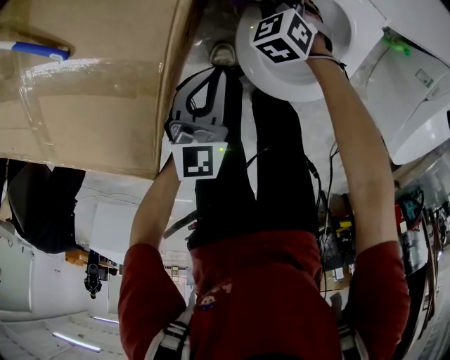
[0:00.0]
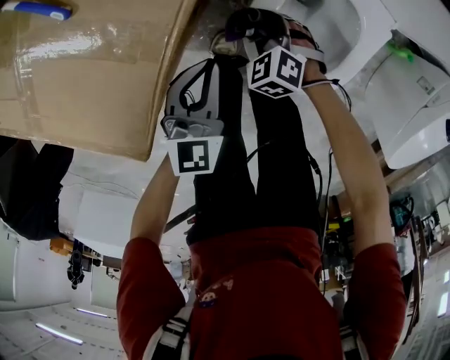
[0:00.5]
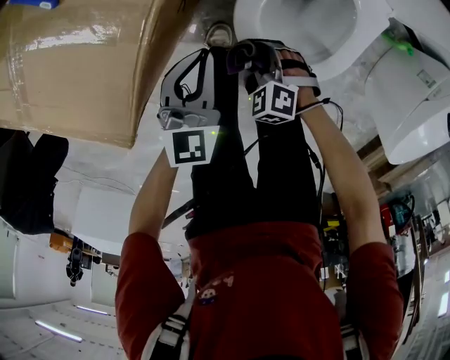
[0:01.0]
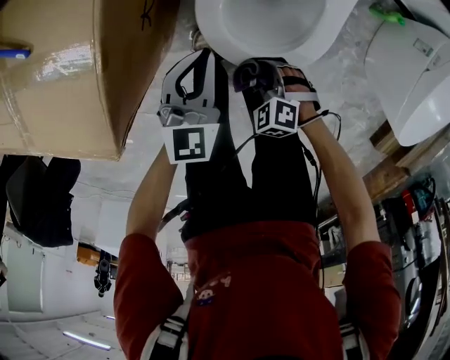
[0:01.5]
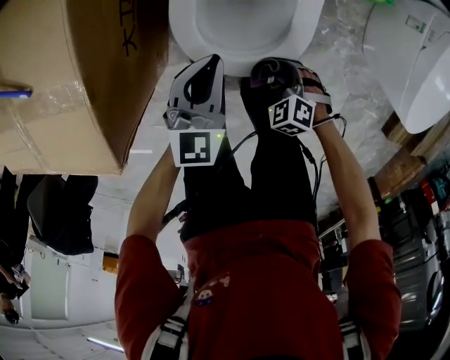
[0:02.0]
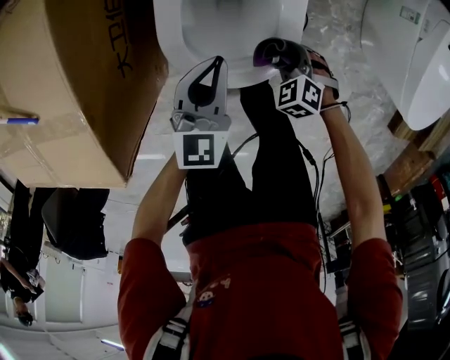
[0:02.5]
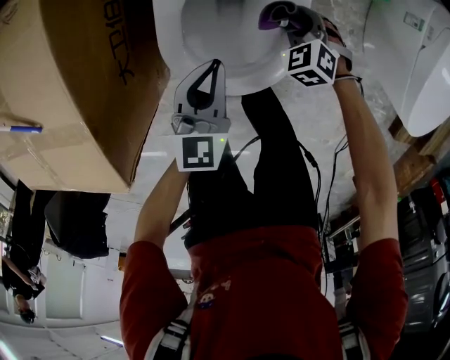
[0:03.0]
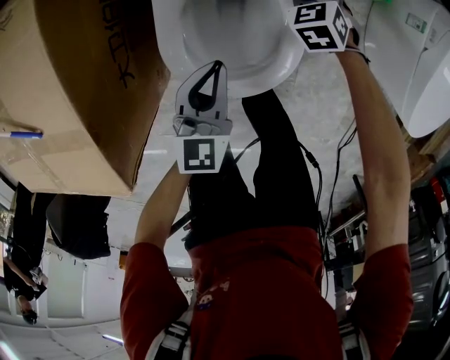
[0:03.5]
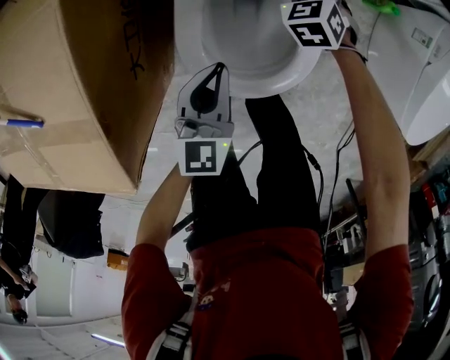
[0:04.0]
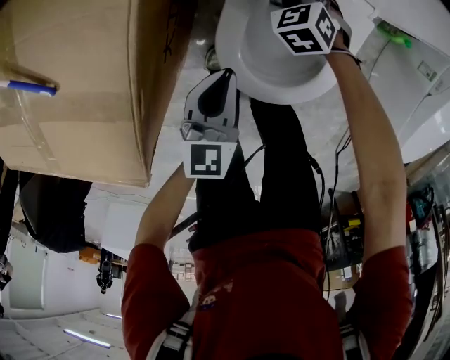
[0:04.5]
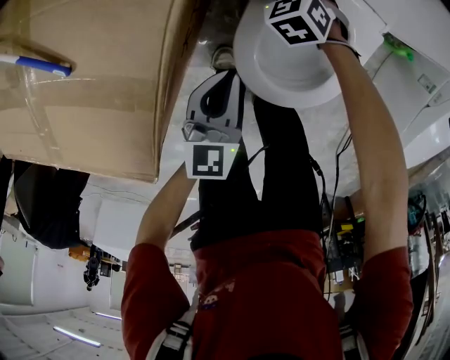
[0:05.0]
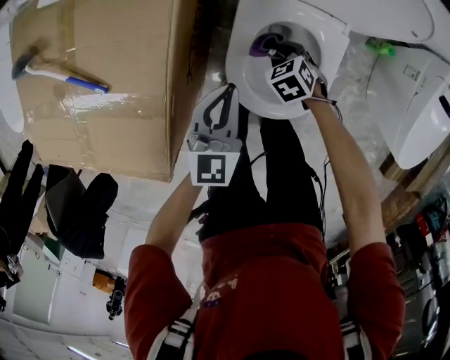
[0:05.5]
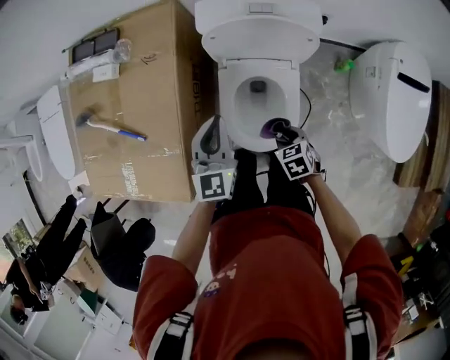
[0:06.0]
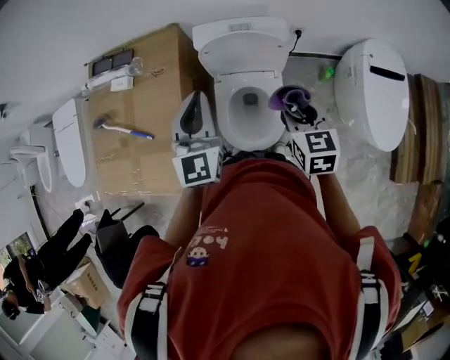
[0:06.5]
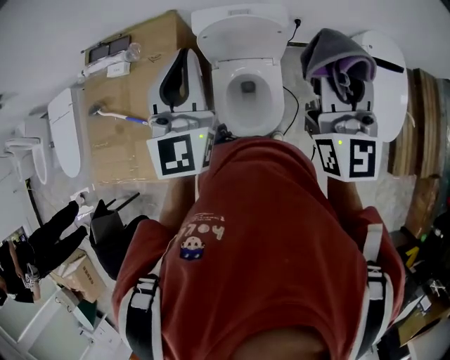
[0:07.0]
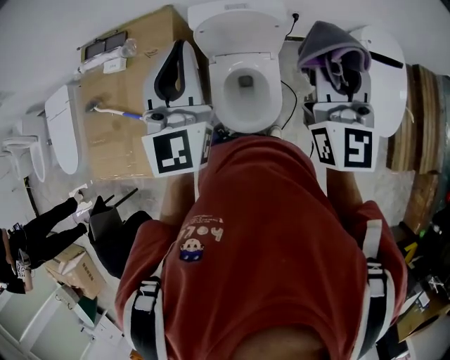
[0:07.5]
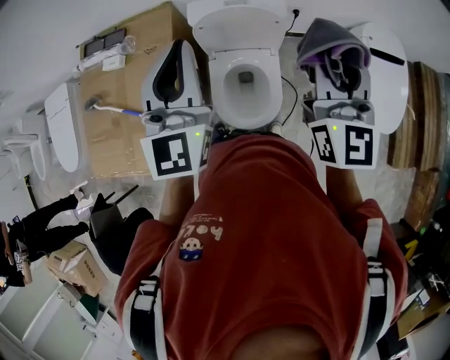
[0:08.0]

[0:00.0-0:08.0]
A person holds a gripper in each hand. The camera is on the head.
0:00.0 to 0:02.0: The left gripper moves to the right, some 15 cm. Meanwhile the right gripper travels backward and to the right by some 35 cm.
0:02.0 to 0:04.0: The left gripper shifts roughly 5 cm forward, and turns by roughly 20 degrees. Meanwhile the right gripper goes approximately 35 cm forward, and changes its angle by roughly 30 degrees.
0:04.0 to 0:06.0: The right gripper moves backward and upward, some 30 cm, and rotates some 30 degrees. The left gripper moves upward, some 25 cm.
0:06.0 to 0:08.0: The right gripper is displaced upward by approximately 50 cm, and tips its fingers upward by approximately 70 degrees. Meanwhile the left gripper goes some 30 cm upward, and swivels about 20 degrees.

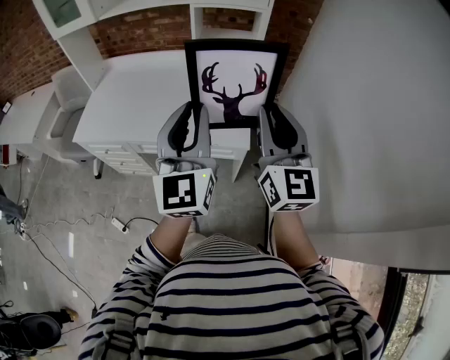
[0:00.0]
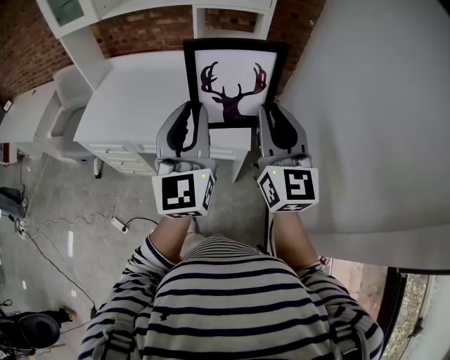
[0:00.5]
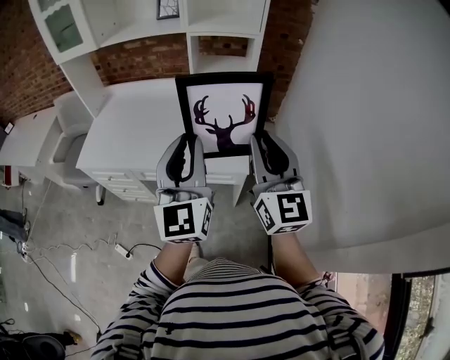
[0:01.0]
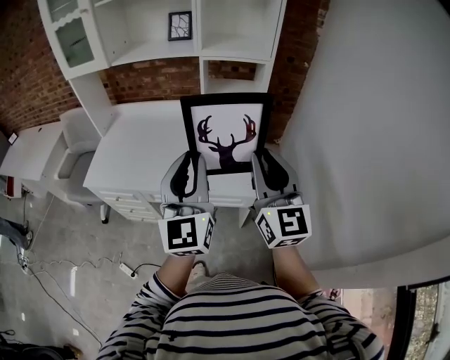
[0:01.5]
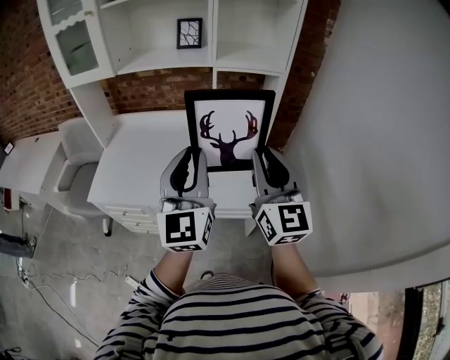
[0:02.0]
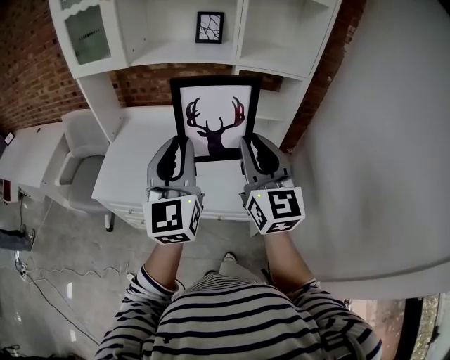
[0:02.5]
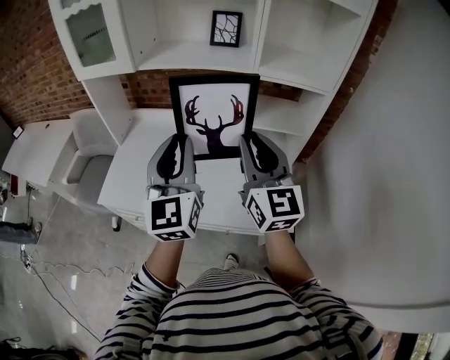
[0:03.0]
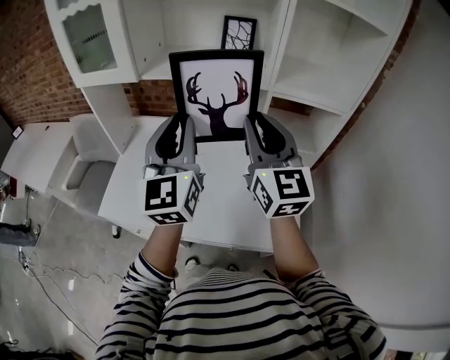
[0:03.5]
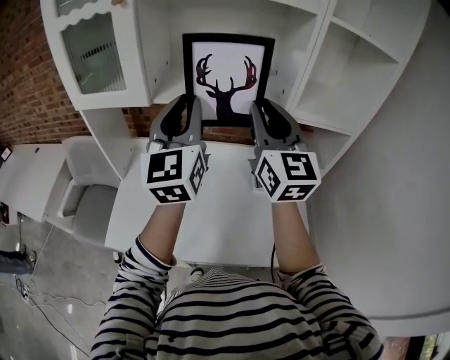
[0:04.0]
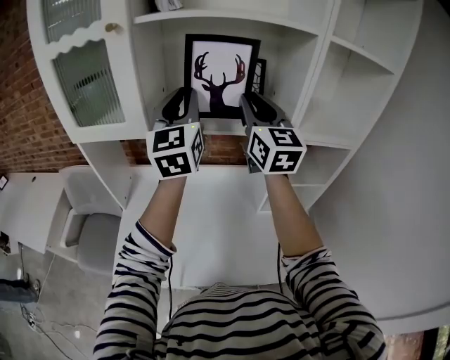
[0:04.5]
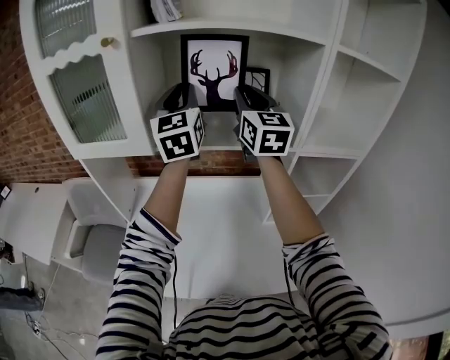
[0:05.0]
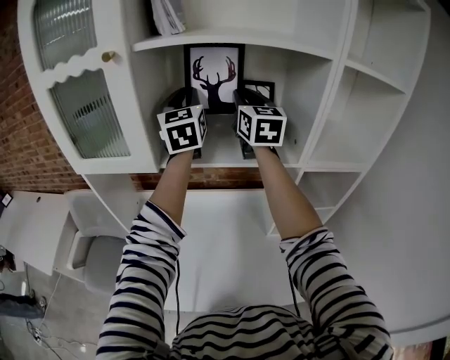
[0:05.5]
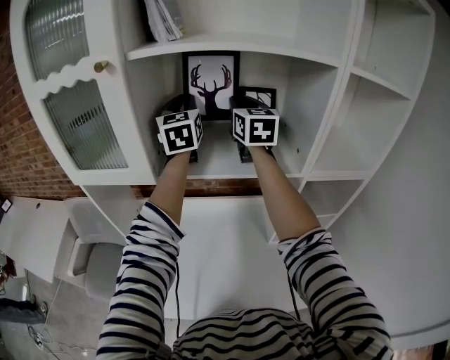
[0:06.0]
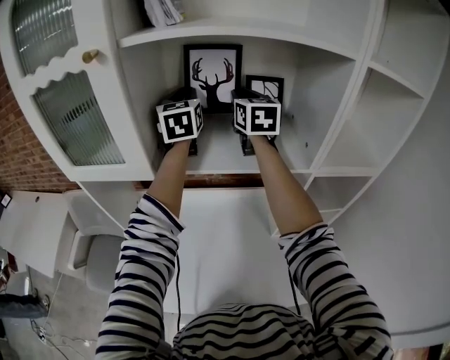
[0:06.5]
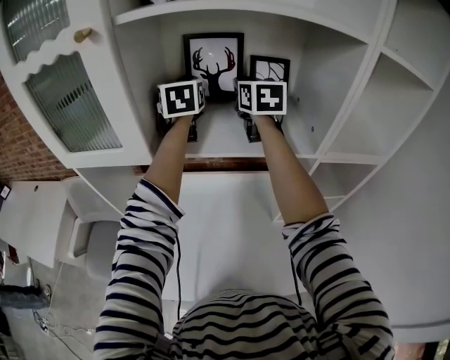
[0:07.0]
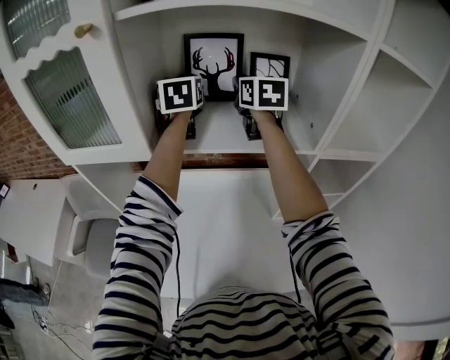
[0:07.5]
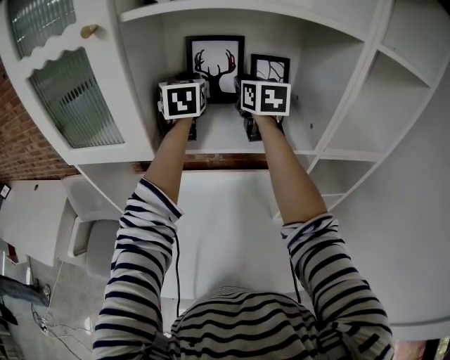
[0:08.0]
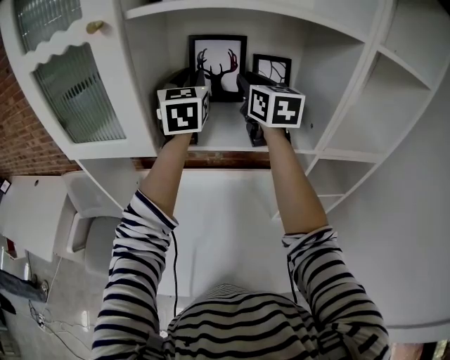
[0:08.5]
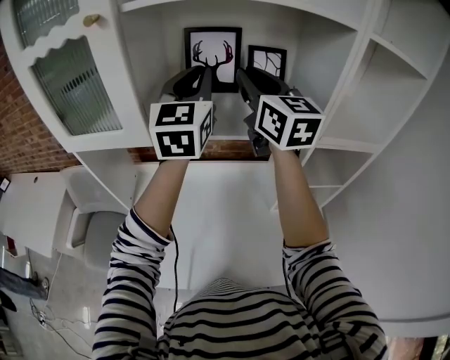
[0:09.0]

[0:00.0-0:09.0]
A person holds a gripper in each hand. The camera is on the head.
0:00.0 to 0:02.0: Both grippers move to the left and forward, about 15 cm.
0:02.0 to 0:04.5: The two grippers travel together, forward, approximately 50 cm.
0:04.5 to 0:07.0: Both grippers travel together forward, some 25 cm. The left gripper changes its angle by roughly 30 degrees, while the right gripper rotates about 20 degrees.
0:07.0 to 0:09.0: The left gripper shifts roughly 15 cm backward, and swivels approximately 20 degrees; the right gripper travels backward and upward by some 15 cm, and rotates approximately 20 degrees.

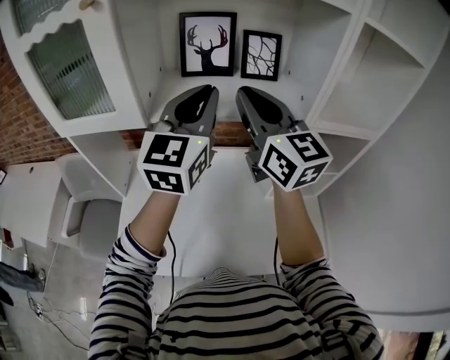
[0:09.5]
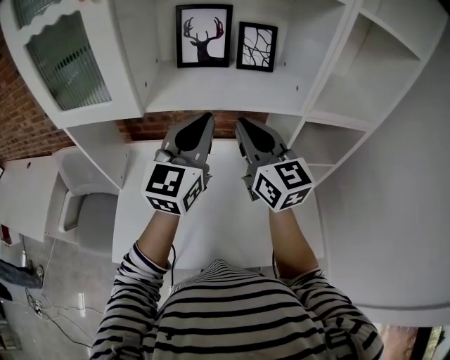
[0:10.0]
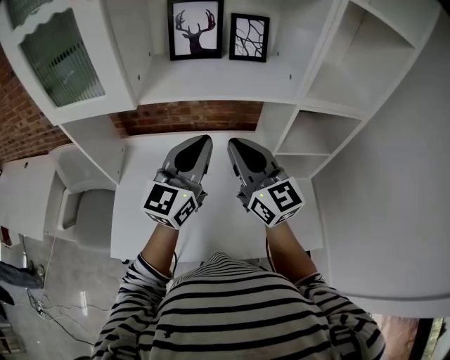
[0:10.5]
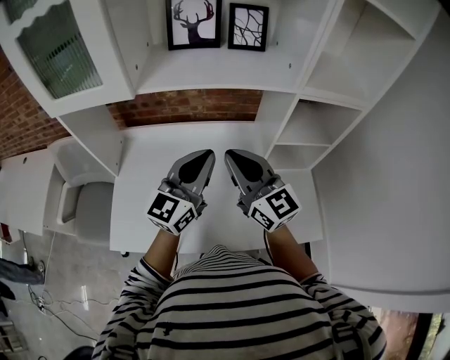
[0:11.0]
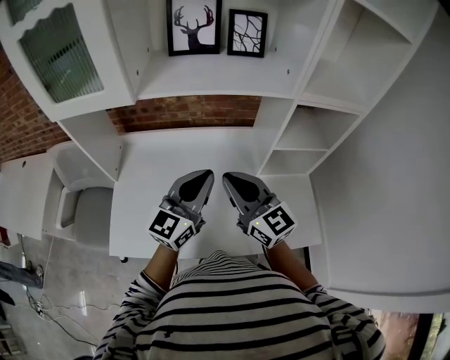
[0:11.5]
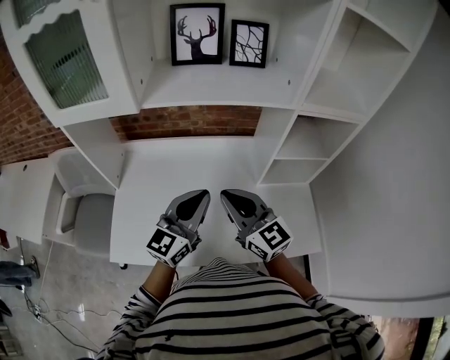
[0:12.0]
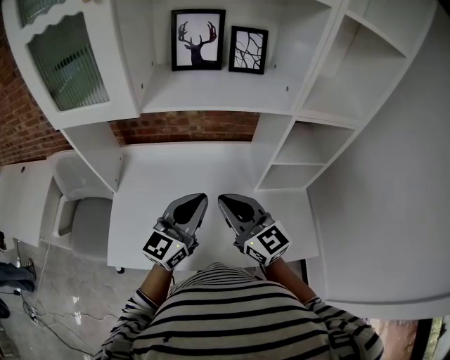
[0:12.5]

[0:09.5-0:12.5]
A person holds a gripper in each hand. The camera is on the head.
0:09.5 to 0:11.0: Both grippers travel together downward and backward, some 20 cm.
0:11.0 to 0:12.5: The right gripper shifts by some 5 cm; the left gripper moves approximately 5 cm.

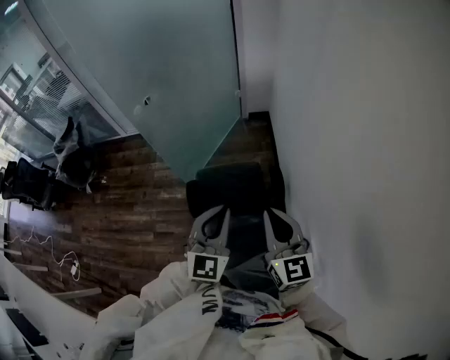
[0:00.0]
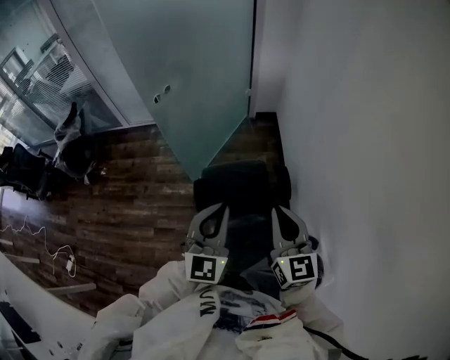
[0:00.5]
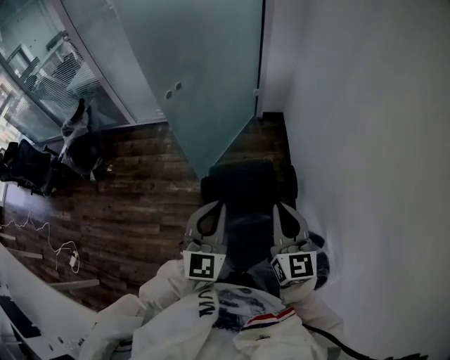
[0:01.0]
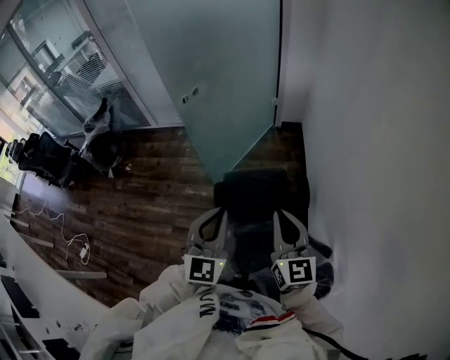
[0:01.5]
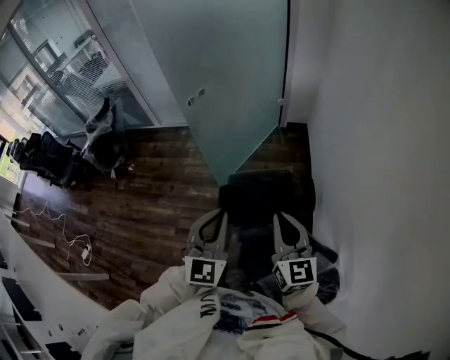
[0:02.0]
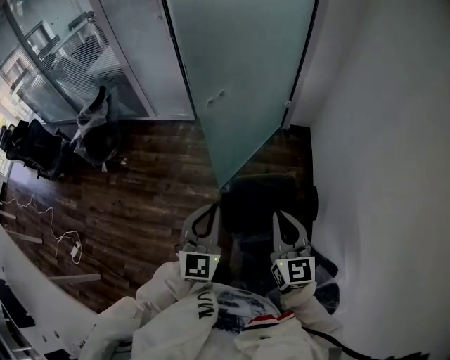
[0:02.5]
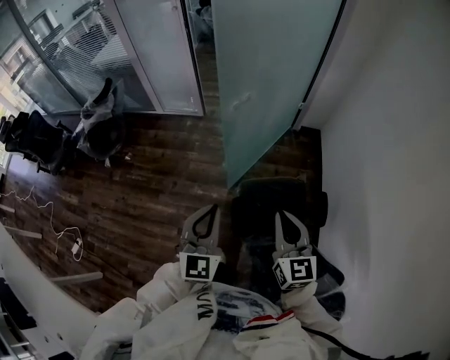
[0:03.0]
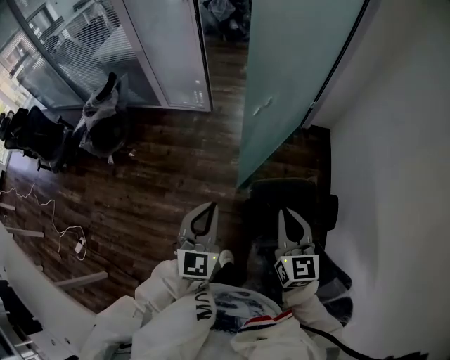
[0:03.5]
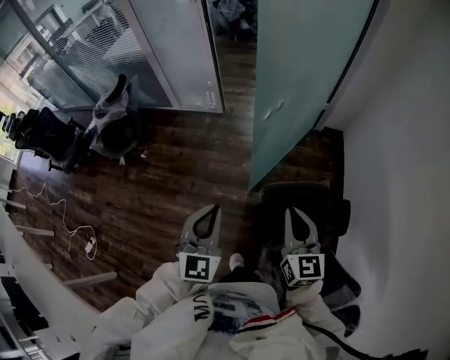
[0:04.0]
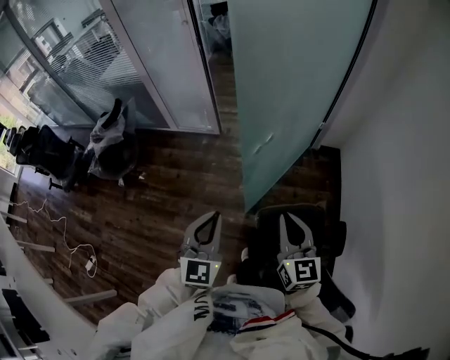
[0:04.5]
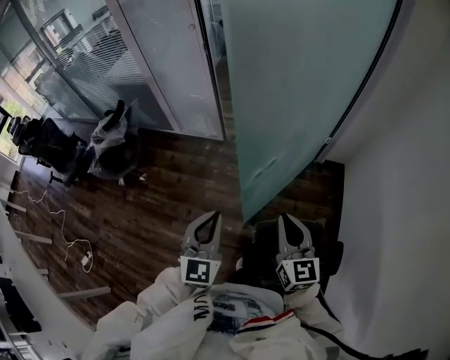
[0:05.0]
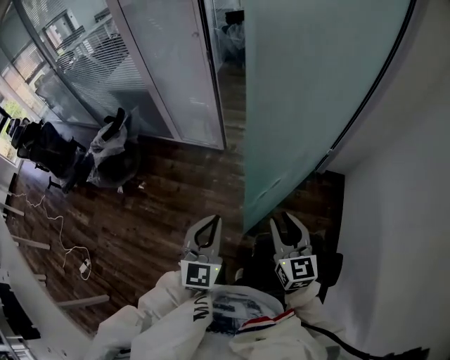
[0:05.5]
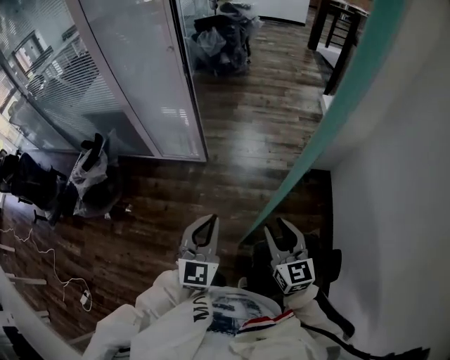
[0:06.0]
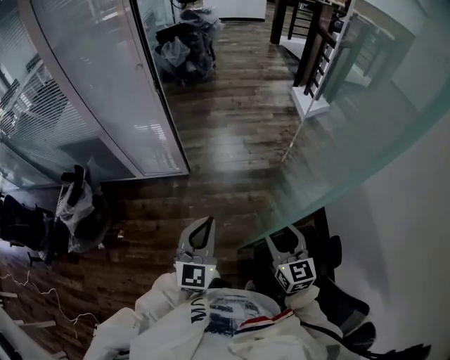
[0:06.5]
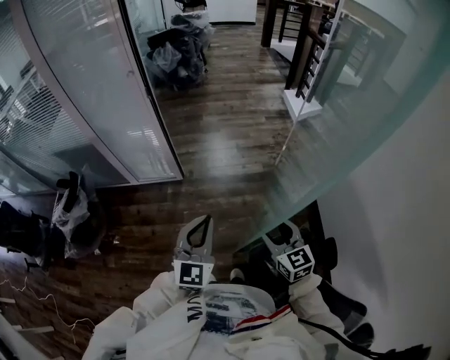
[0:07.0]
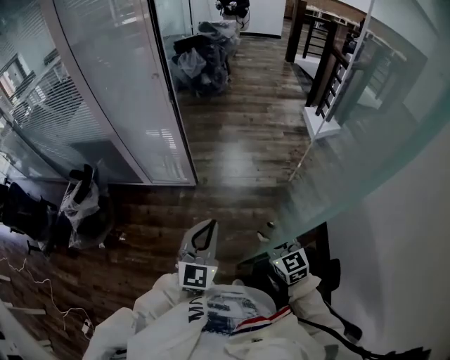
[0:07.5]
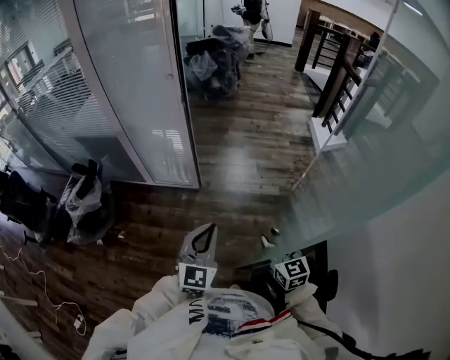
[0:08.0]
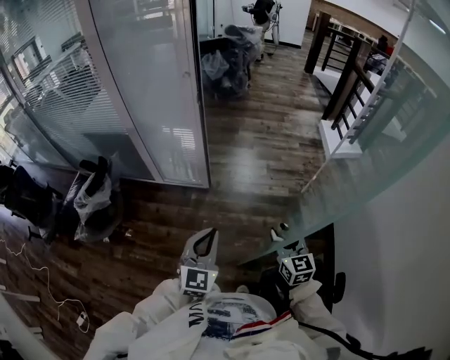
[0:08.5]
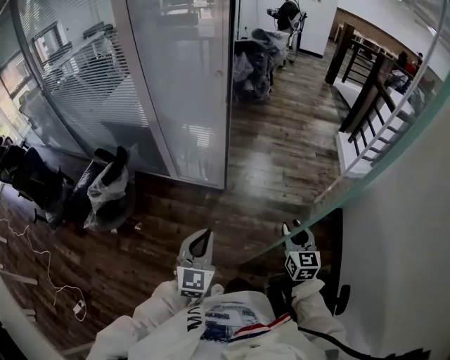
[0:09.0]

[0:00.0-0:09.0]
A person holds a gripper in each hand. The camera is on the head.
0:00.0 to 0:02.0: Both grippers move to the left, roughly 15 cm.
0:02.0 to 0:04.5: Both grippers move forward and to the left, some 35 cm.
0:04.5 to 0:07.0: The two grippers go roughly 20 cm forward. The right gripper opens.
0:07.0 to 0:09.0: The left gripper heads to the left, covering roughly 15 cm. Meanwhile the right gripper heads forward and to the left, covering some 15 cm.
